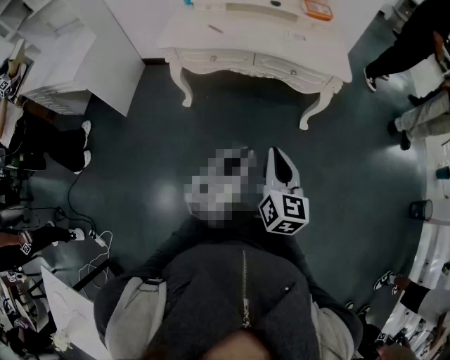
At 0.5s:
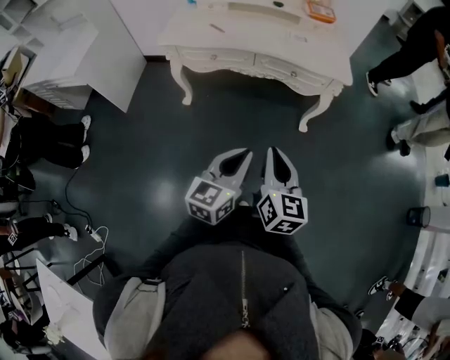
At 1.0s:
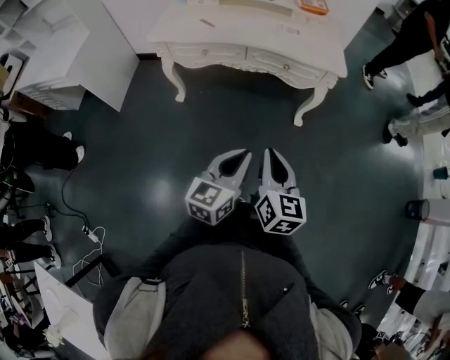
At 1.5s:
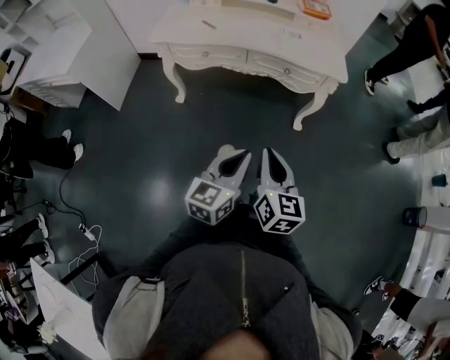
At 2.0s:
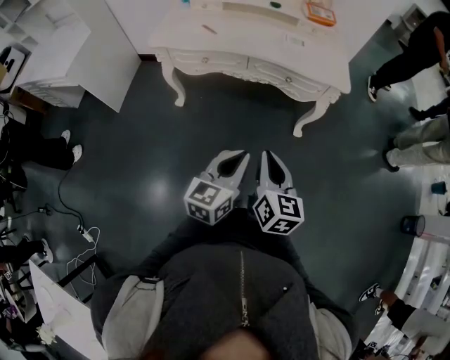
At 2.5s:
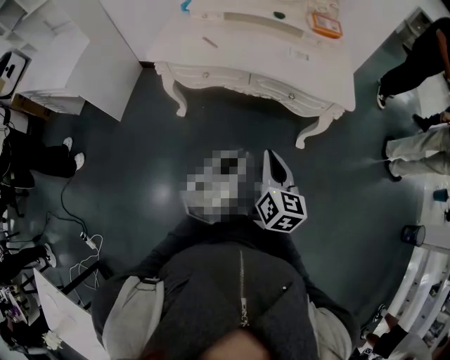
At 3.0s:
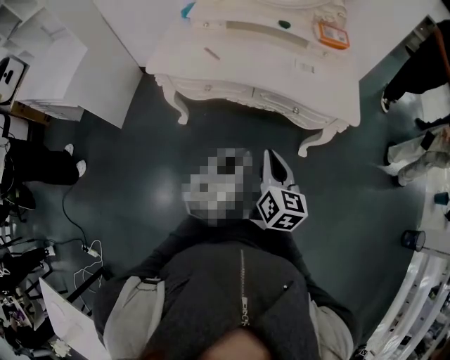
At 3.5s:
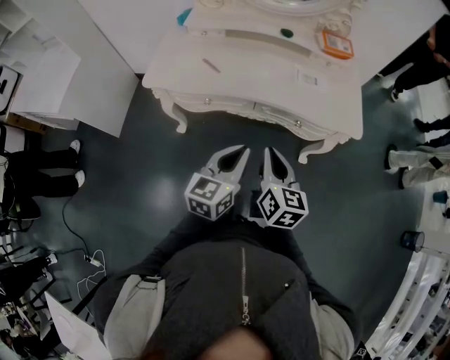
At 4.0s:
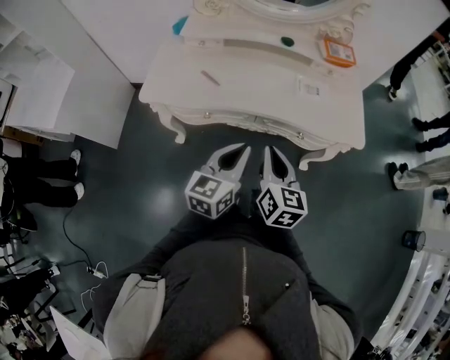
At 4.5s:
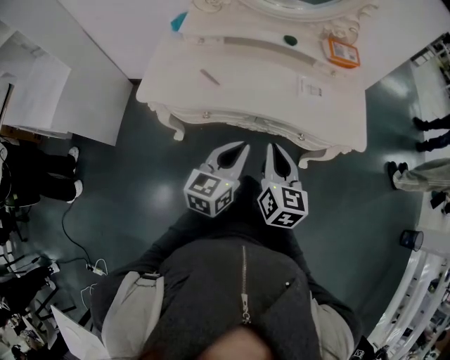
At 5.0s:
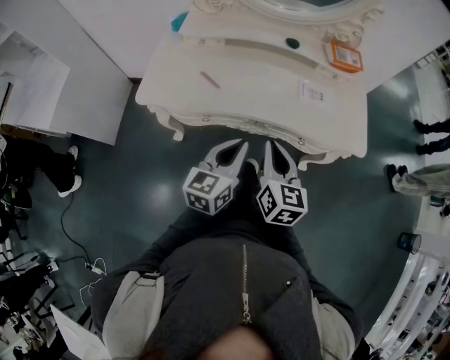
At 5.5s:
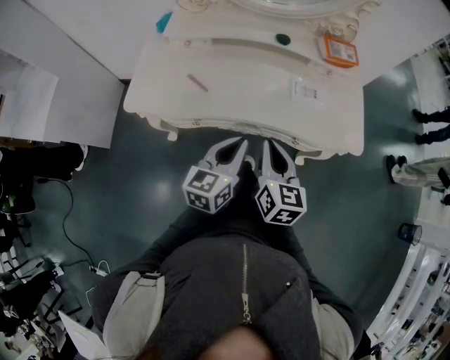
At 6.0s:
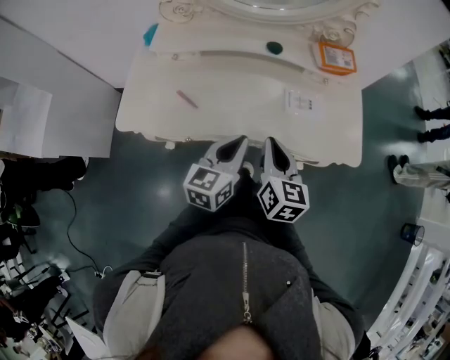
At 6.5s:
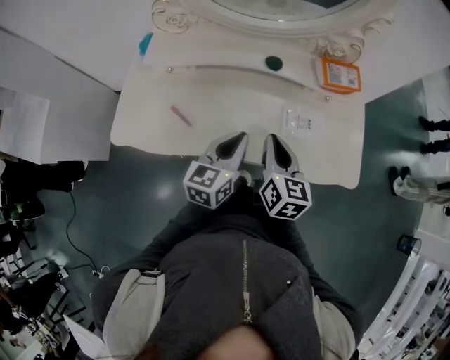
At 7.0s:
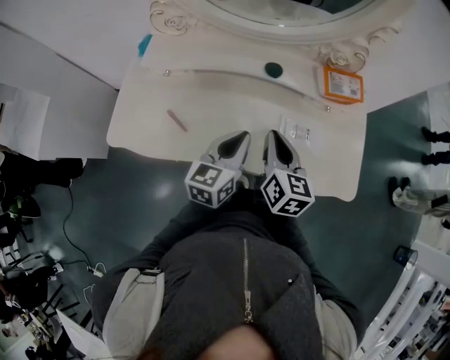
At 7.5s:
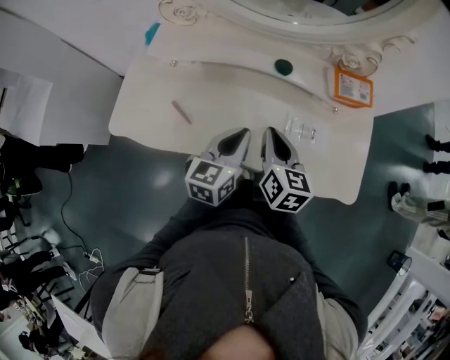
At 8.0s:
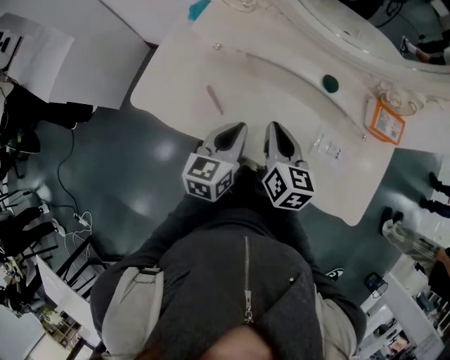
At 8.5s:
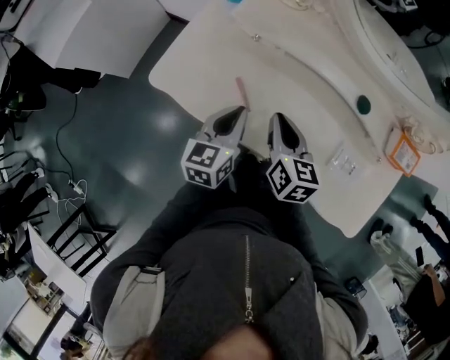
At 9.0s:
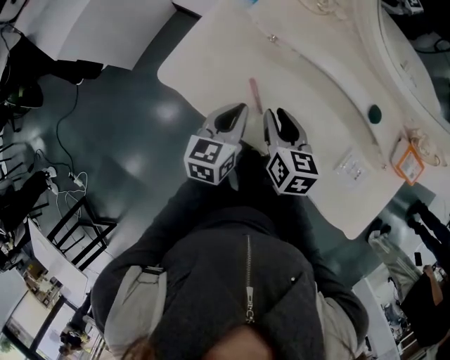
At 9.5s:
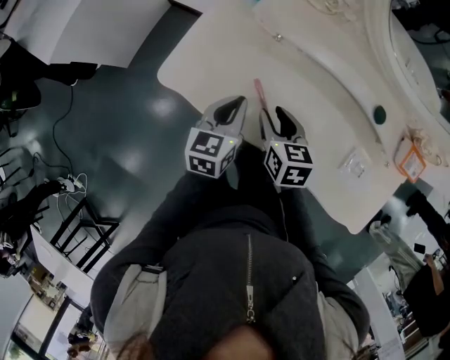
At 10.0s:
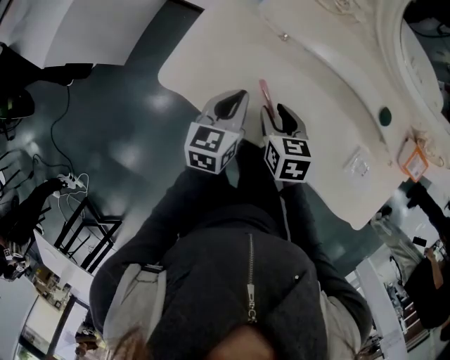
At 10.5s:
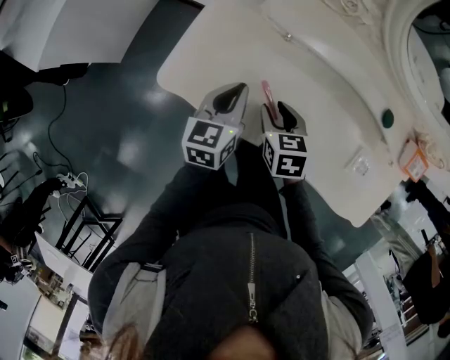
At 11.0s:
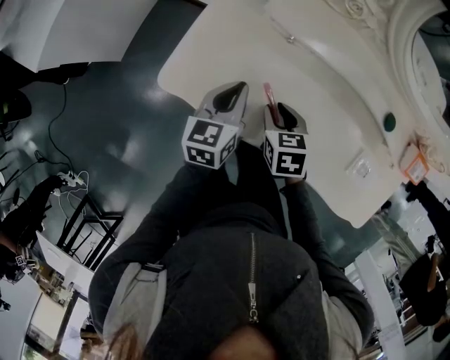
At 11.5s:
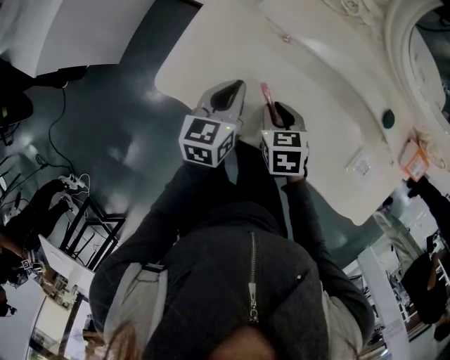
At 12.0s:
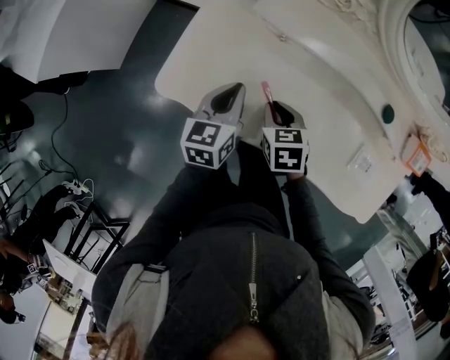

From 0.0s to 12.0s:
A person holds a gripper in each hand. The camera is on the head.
From 0.0s to 2.0s: The two grippers go some 5 cm forward.
From 2.0s to 4.0s: The two grippers go some 30 cm forward.
From 4.0s to 6.0s: The grippers both shift forward by some 15 cm.
From 6.0s to 8.0s: Both grippers travel together forward and to the left, about 15 cm. The left gripper rotates about 20 degrees. The right gripper changes its angle by roughly 20 degrees.
From 8.0s to 10.0s: The left gripper moves to the left and forward, roughly 20 cm. The right gripper goes approximately 20 cm to the left and downward, swivels some 30 degrees, and opens its fingers.
From 10.0s to 12.0s: There are only small adjustments of the grippers.

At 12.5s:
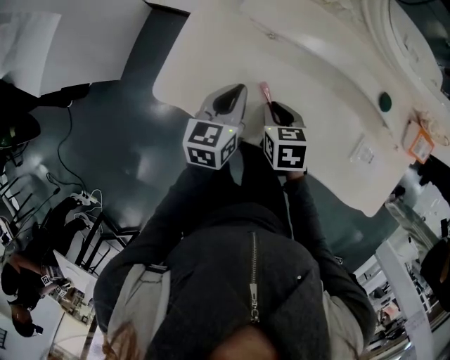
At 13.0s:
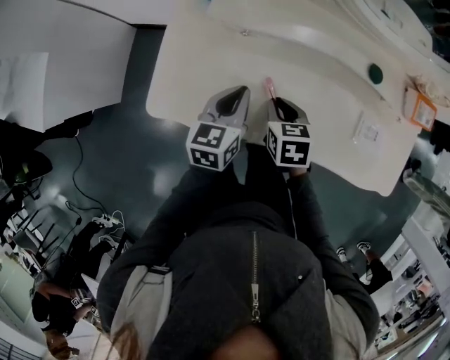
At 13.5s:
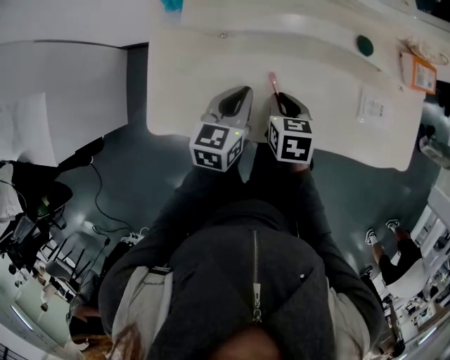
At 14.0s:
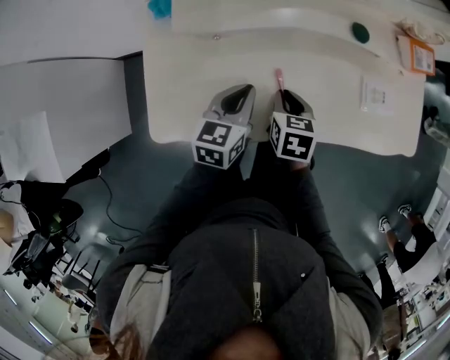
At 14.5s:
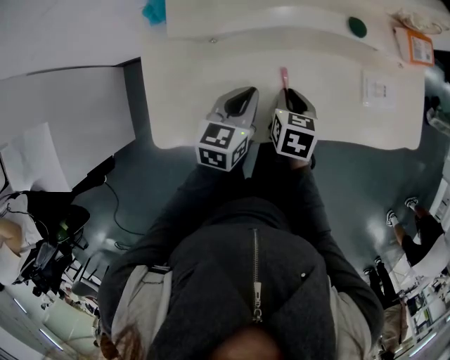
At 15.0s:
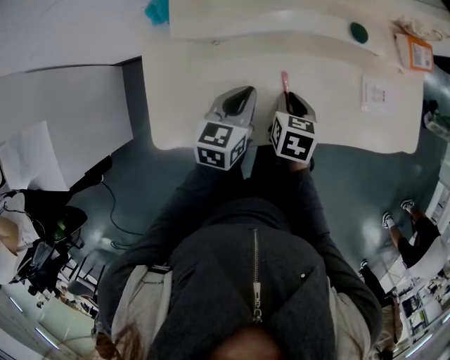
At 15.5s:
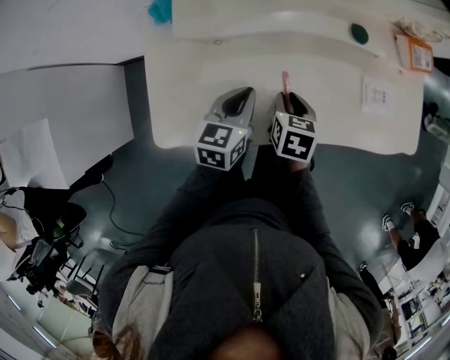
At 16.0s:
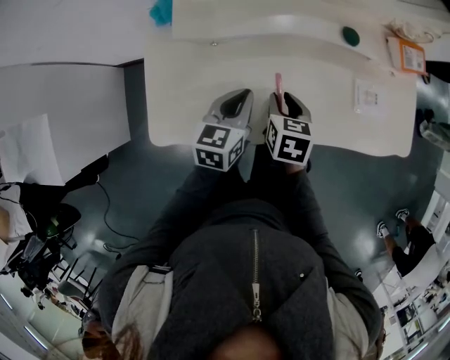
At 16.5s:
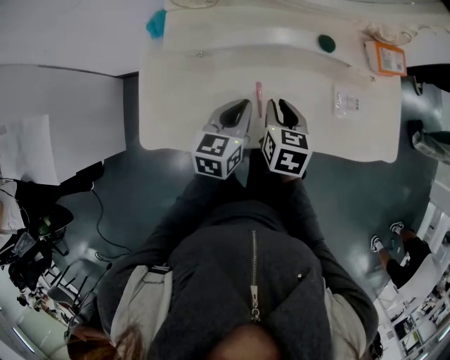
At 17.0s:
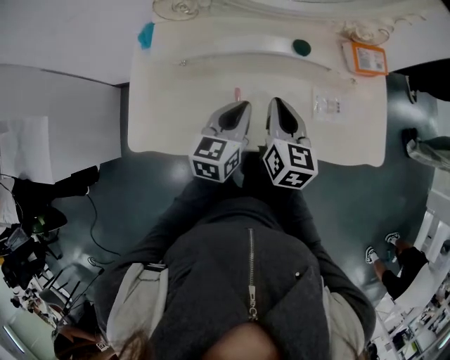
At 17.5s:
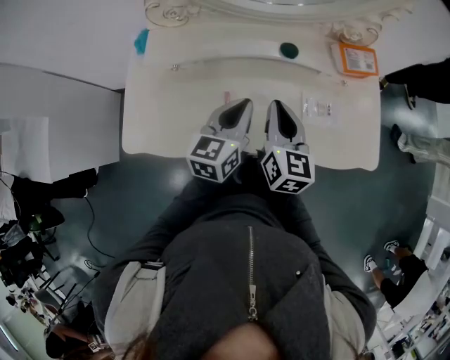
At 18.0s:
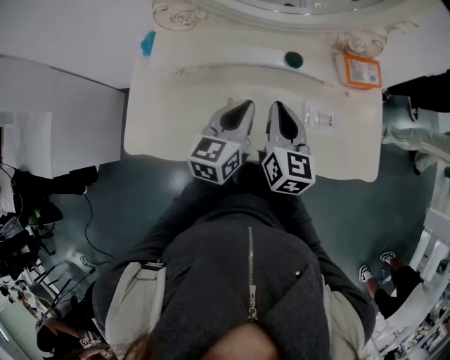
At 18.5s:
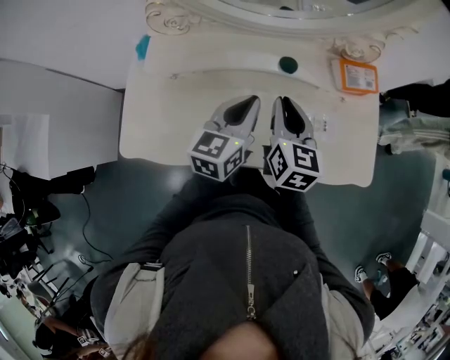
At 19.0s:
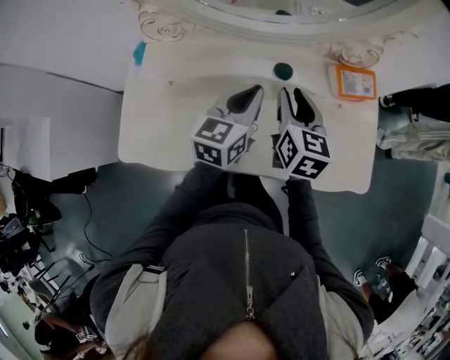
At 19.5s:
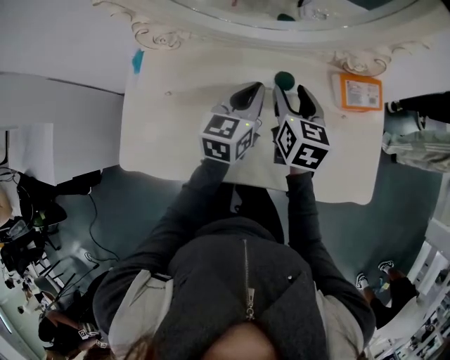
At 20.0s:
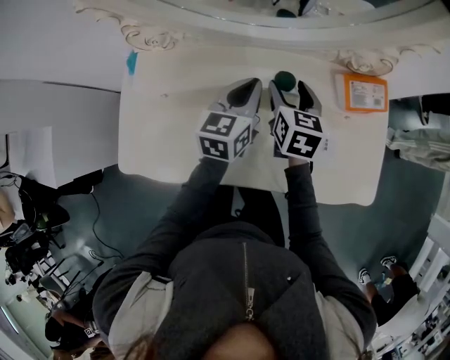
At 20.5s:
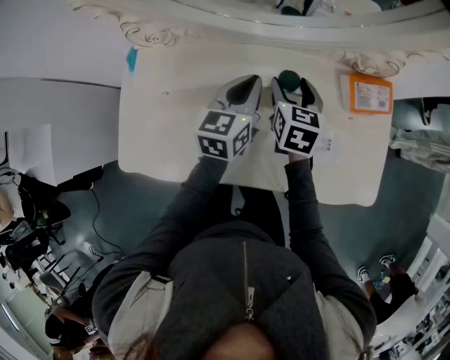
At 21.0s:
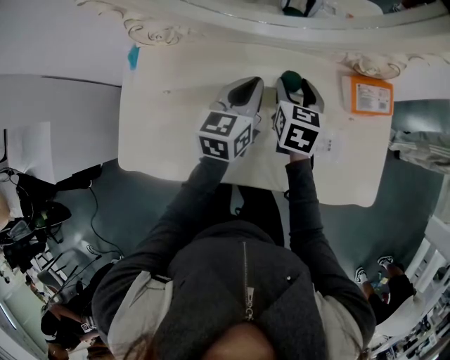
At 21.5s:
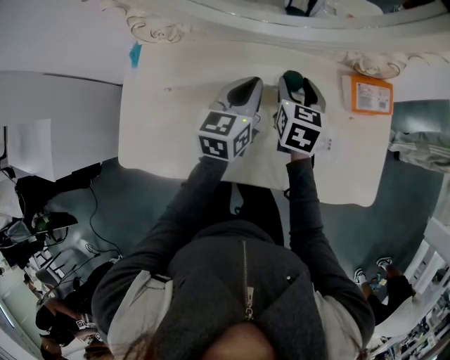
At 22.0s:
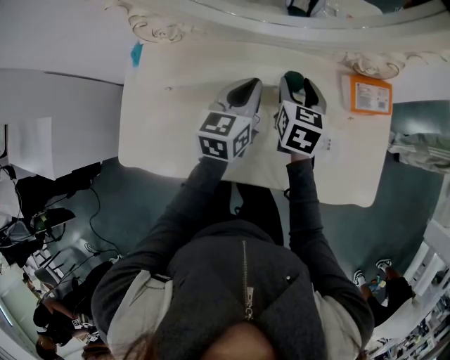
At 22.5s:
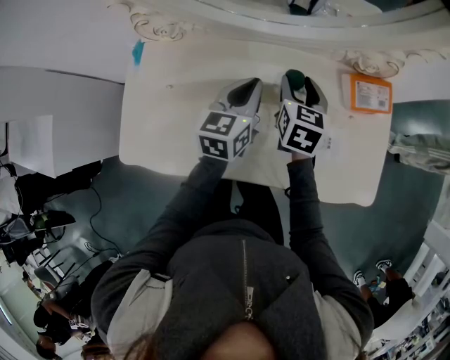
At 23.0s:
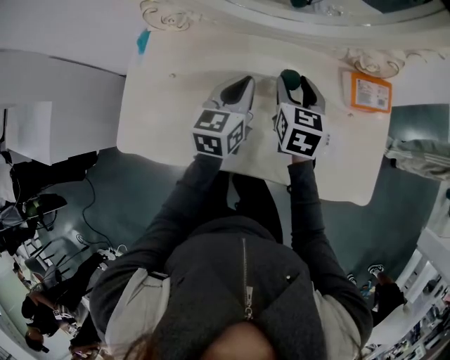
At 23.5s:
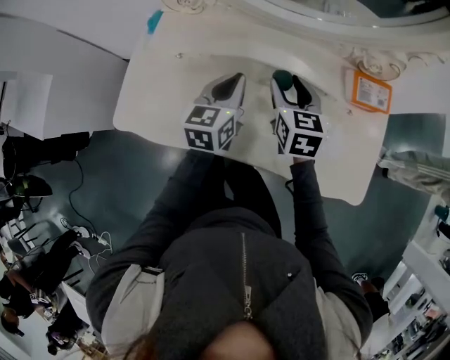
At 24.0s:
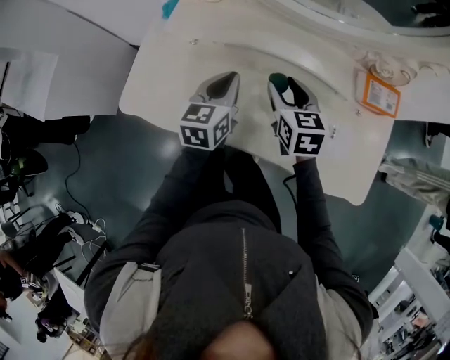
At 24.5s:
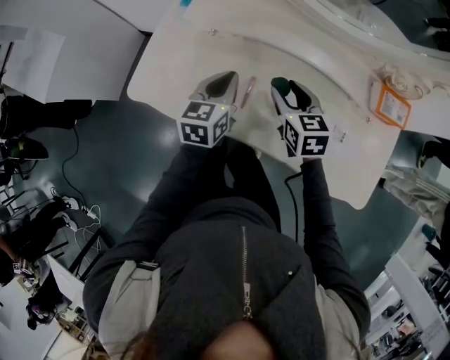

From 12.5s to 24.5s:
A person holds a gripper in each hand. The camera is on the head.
From 12.5s to 14.5s: The right gripper ends up about 10 cm from where it was, and turns by approximately 40 degrees; the left gripper changes place by approximately 10 cm, and changes its angle by roughly 30 degrees.
From 14.5s to 16.5s: The right gripper heads upward, covering approximately 5 cm, while the left gripper changes place by roughly 5 cm.
From 16.5s to 18.5s: The two grippers go approximately 15 cm to the right, upward and forward. The right gripper swivels about 20 degrees.
From 18.5s to 20.5s: The left gripper moves forward, about 15 cm. Meanwhile the right gripper shifts some 15 cm forward and downward, and opens up.
From 20.5s to 22.5s: There are only small adjustments of the grippers.
From 22.5s to 24.5s: The right gripper ends up roughly 20 cm from where it was, and rotates roughly 40 degrees. The left gripper shifts by roughly 20 cm.

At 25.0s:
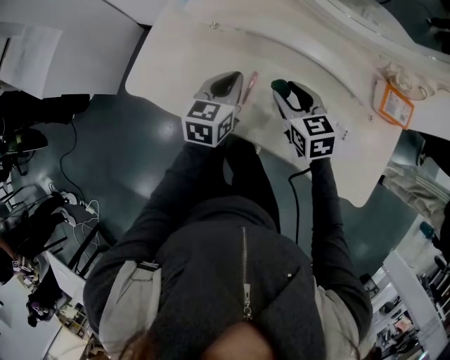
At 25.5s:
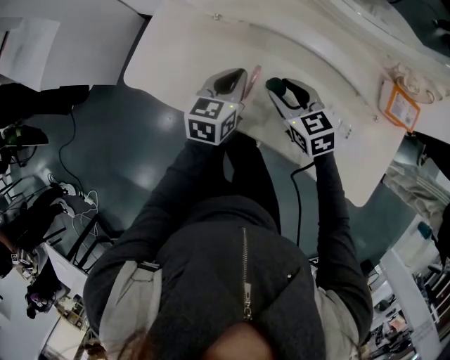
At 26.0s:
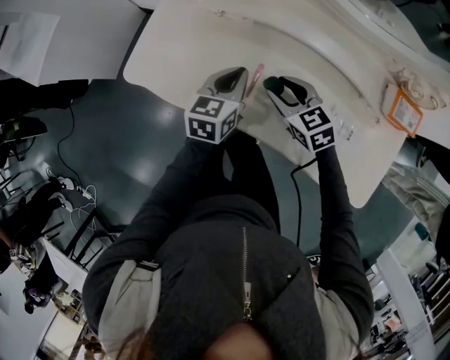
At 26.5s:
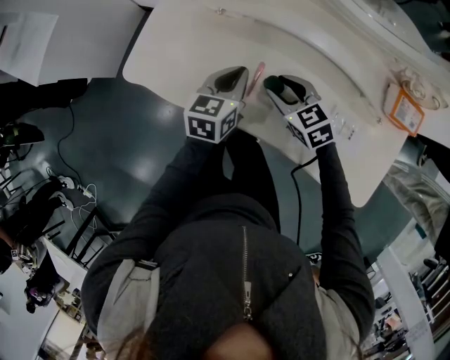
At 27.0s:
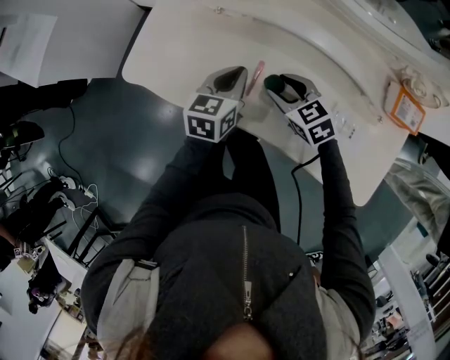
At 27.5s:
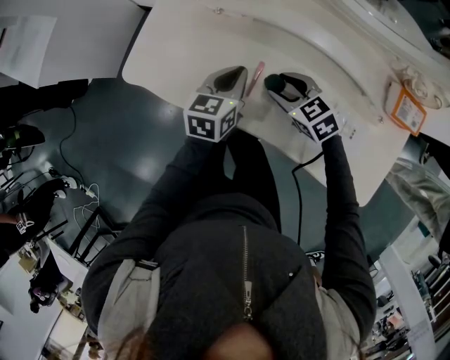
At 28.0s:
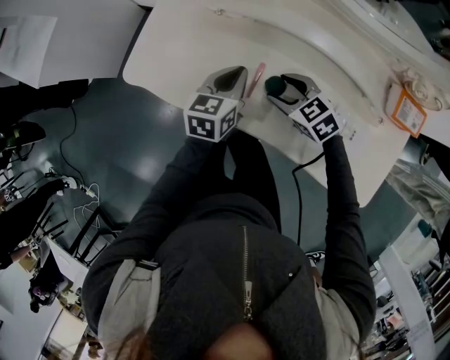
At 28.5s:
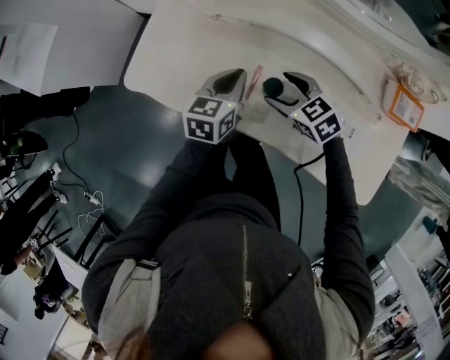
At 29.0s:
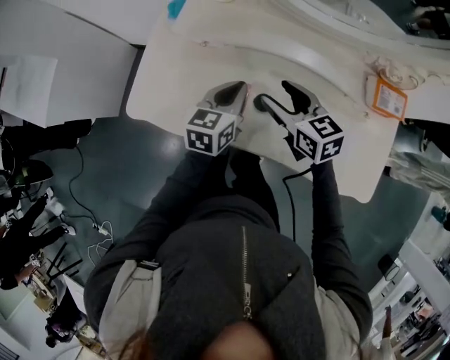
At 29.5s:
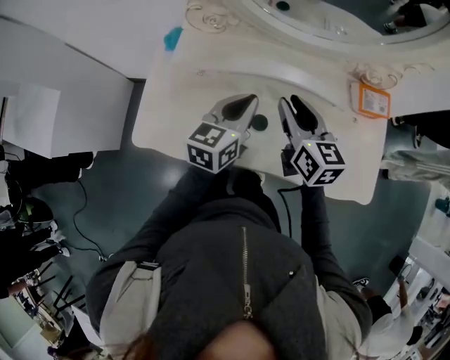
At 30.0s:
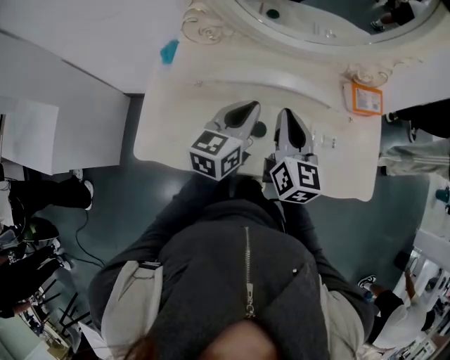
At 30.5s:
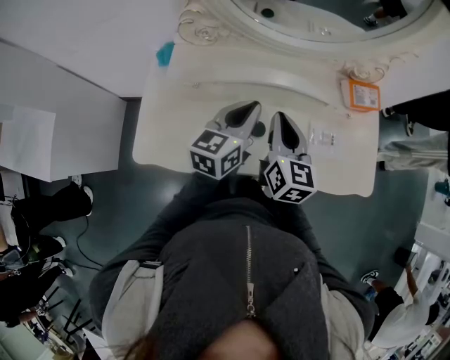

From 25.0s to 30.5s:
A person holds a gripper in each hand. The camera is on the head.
From 25.0s to 27.0s: The right gripper shifts approximately 5 cm downward, and changes its angle by about 20 degrees.
From 27.0s to 28.5s: The right gripper opens up.
From 28.5s to 30.5s: Both grippers travel together upward, about 15 cm. The right gripper points its fingers about 30 degrees further upward, and closes up, while the left gripper turns by about 30 degrees.
